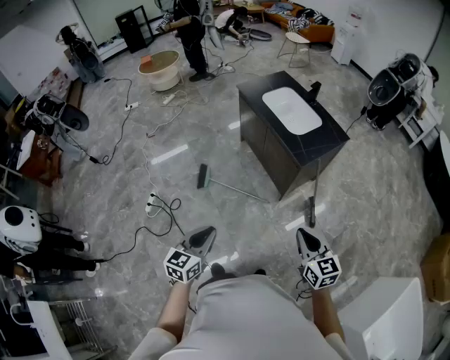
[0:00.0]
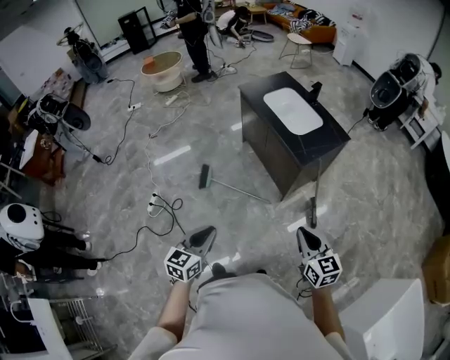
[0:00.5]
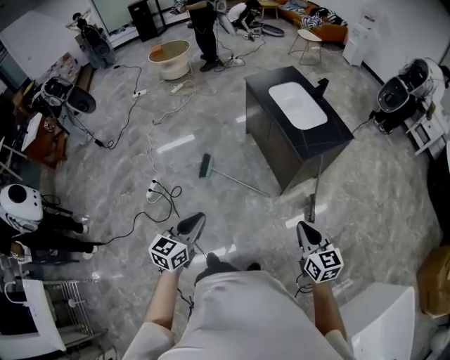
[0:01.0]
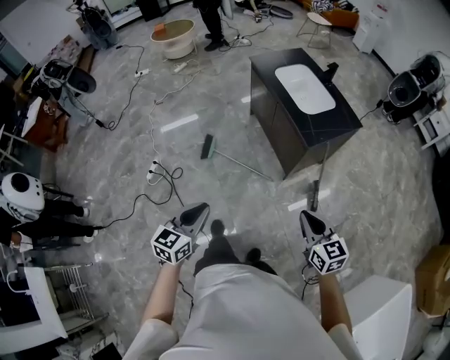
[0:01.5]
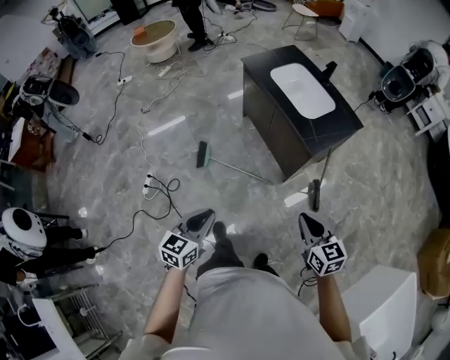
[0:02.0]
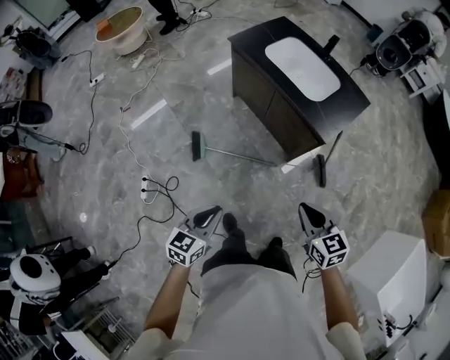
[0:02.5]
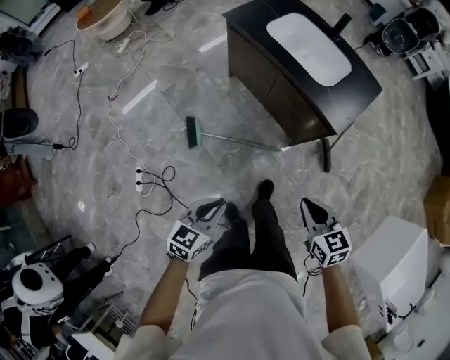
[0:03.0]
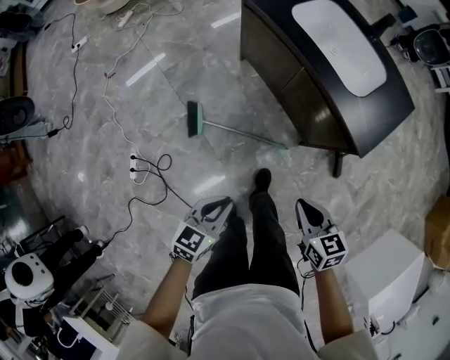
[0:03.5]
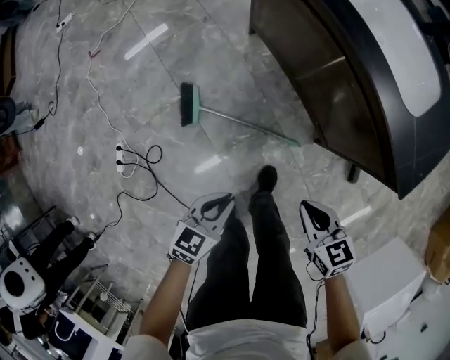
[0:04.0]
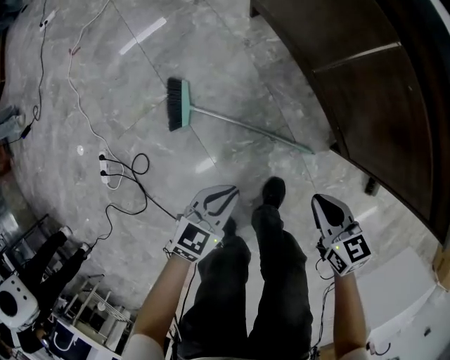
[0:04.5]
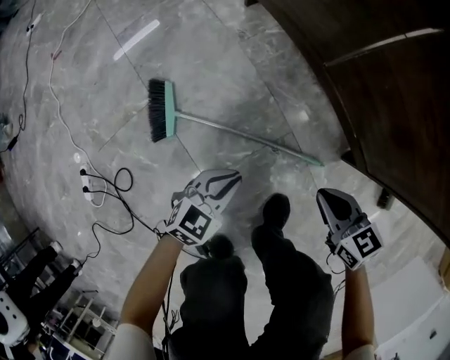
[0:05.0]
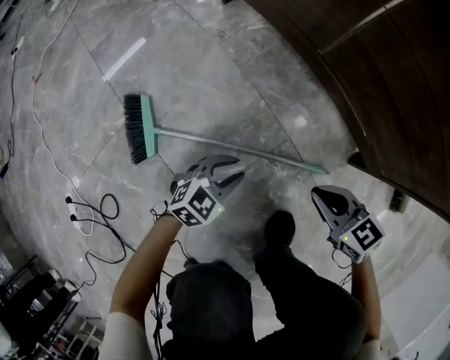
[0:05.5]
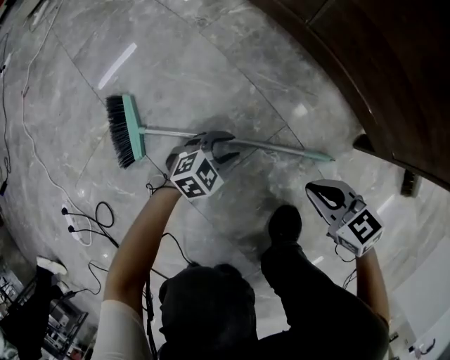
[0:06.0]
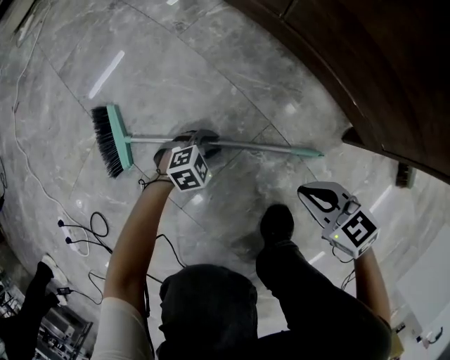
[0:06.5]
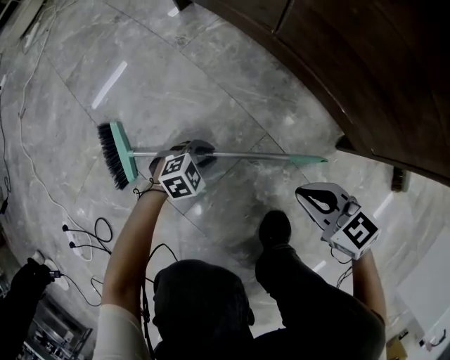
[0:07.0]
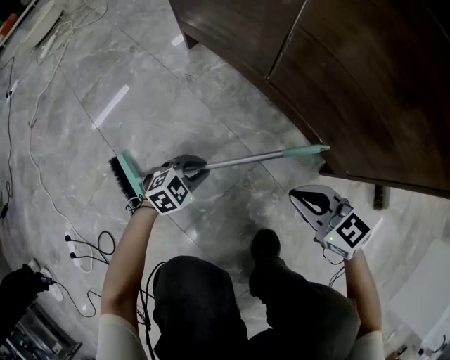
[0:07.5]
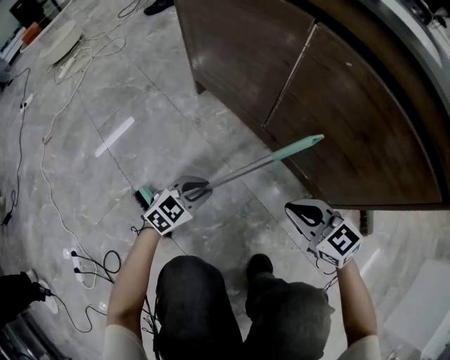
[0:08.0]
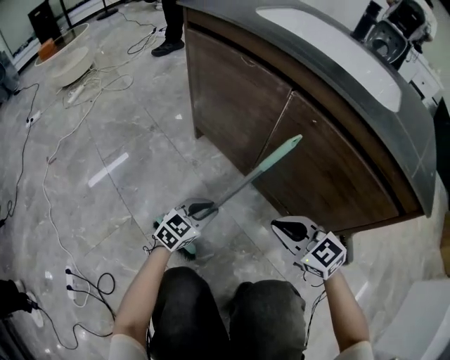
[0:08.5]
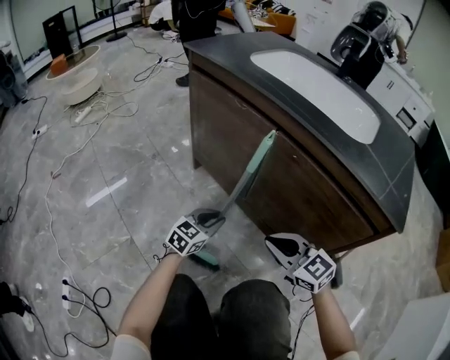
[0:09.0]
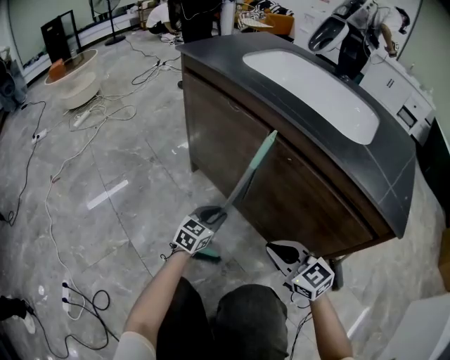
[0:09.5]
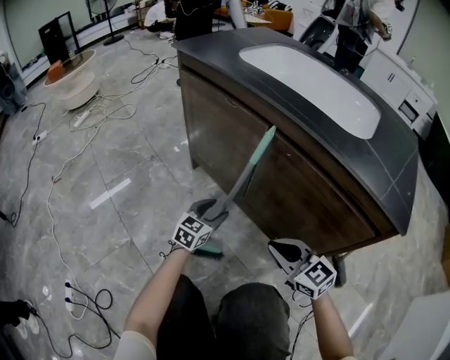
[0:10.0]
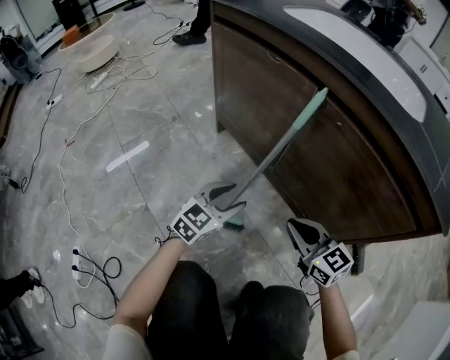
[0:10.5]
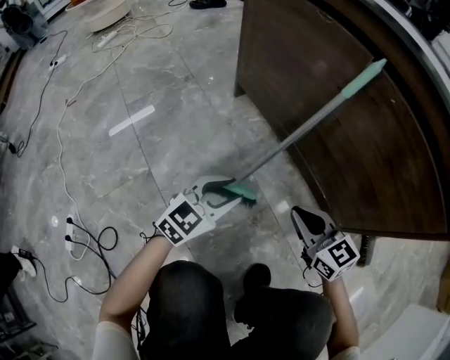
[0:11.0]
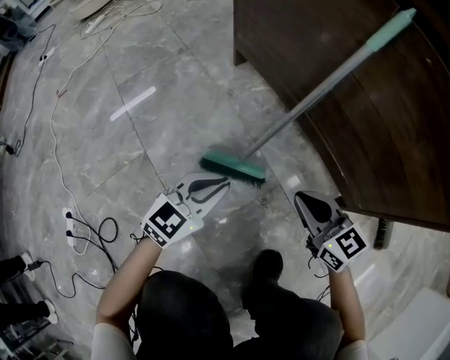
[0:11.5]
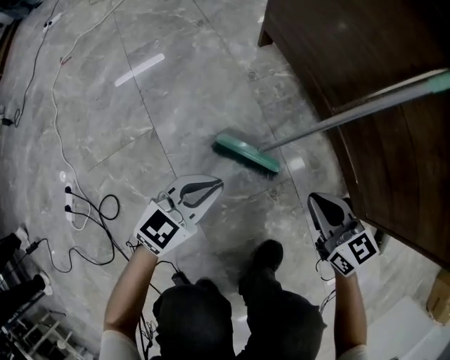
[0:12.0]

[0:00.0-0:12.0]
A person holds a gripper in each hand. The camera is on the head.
0:00.0 to 0:02.0: The left gripper goes some 10 cm forward; the right gripper moves forward and to the left, about 10 cm.
0:02.0 to 0:04.0: Both grippers move downward and forward, about 60 cm. The left gripper turns by about 20 degrees; the right gripper rotates about 20 degrees.
0:04.0 to 0:06.0: The grippers both shift downward by approximately 60 cm. The left gripper rotates around the line of its fingers by roughly 50 degrees, clockwise from behind, and opens its fingers.
0:06.0 to 0:08.0: Both grippers move upward, approximately 20 cm. The left gripper closes.
0:08.0 to 0:10.0: The right gripper is displaced upward by approximately 10 cm, while the left gripper travels upward, forward and to the right by roughly 20 cm, rotates some 20 degrees, and opens up.
0:10.0 to 0:12.0: The left gripper travels to the left, backward and downward by some 25 cm, and closes, while the right gripper moves downward and to the left, approximately 20 cm.

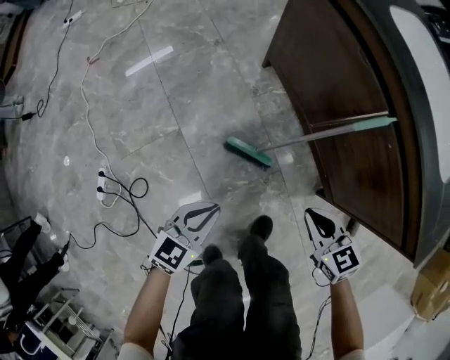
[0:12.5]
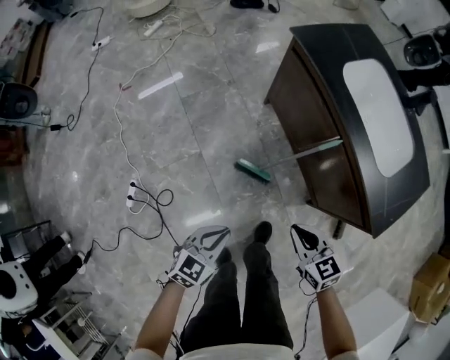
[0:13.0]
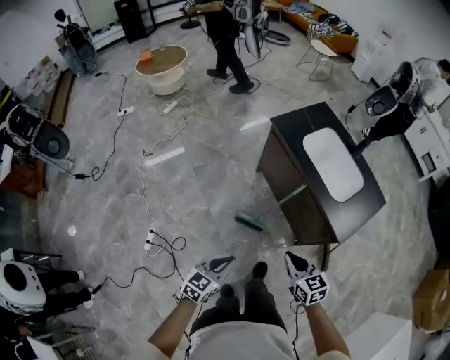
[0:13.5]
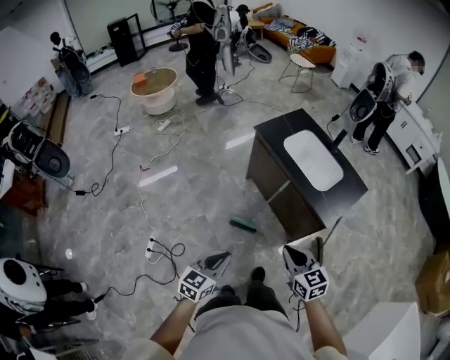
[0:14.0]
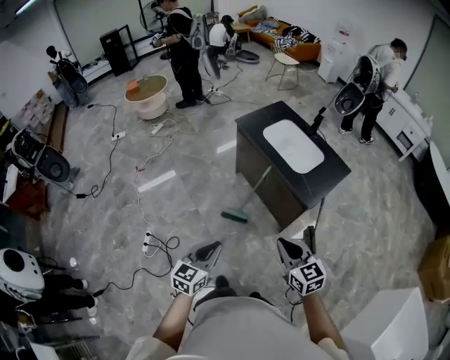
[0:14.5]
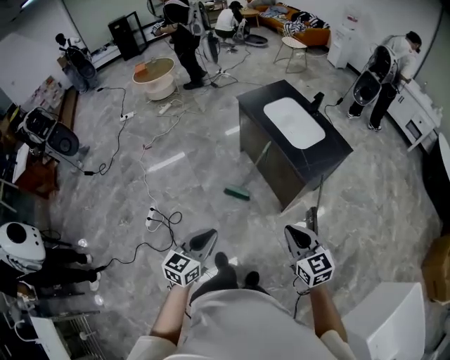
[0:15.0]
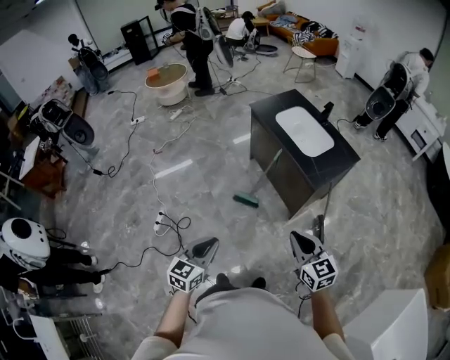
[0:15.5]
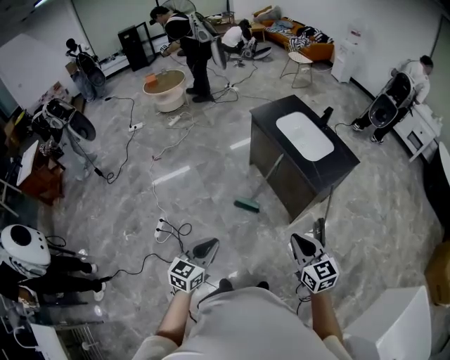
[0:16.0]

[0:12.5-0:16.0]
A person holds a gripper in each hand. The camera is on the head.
0:12.5 to 0:14.5: The two grippers go approximately 70 cm upward and backward. The right gripper swivels about 20 degrees.
0:14.5 to 0:16.0: The two grippers go roughly 10 cm backward.

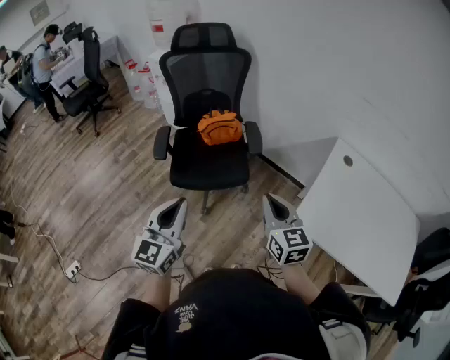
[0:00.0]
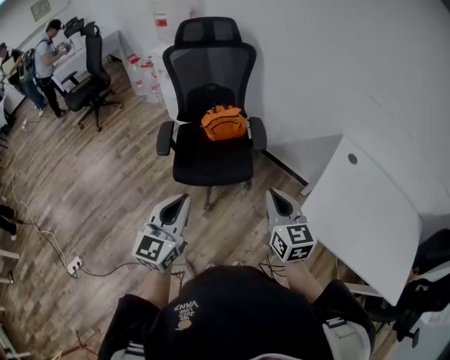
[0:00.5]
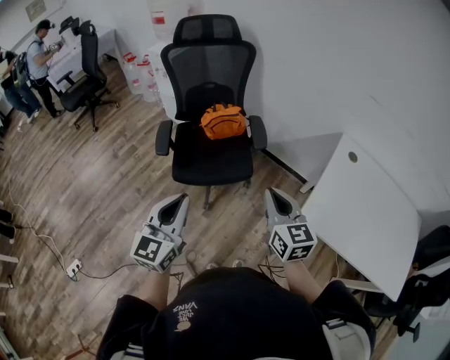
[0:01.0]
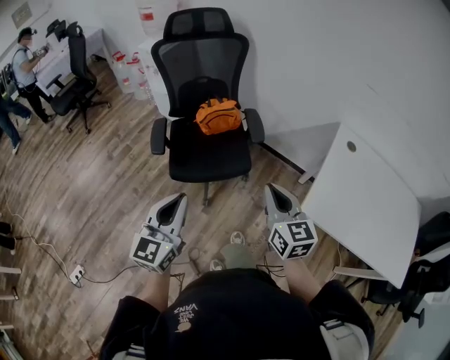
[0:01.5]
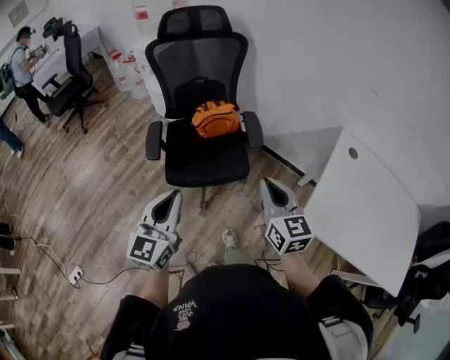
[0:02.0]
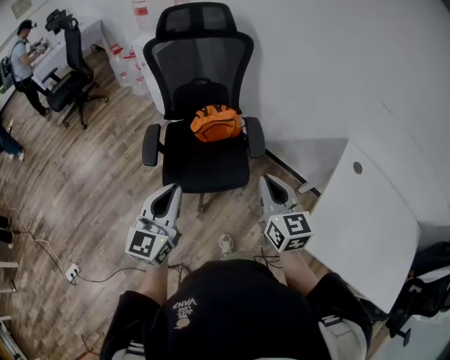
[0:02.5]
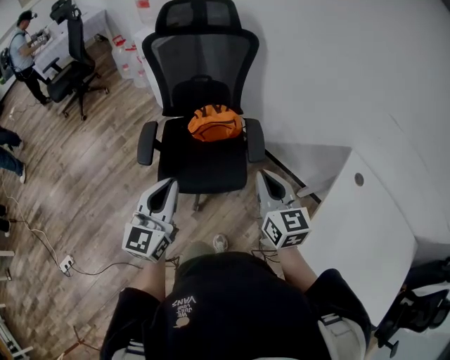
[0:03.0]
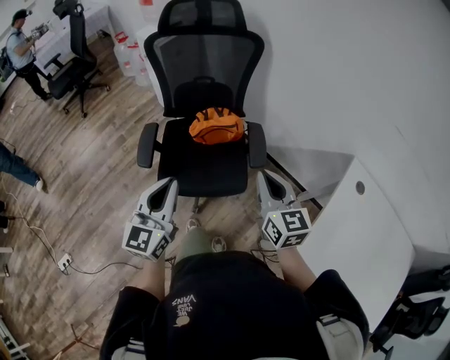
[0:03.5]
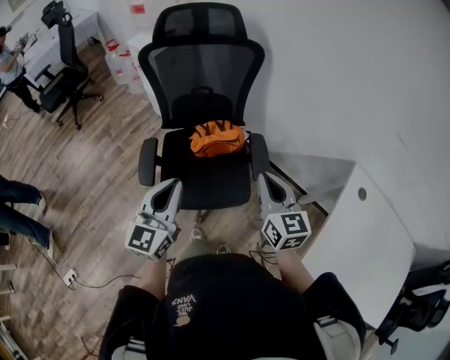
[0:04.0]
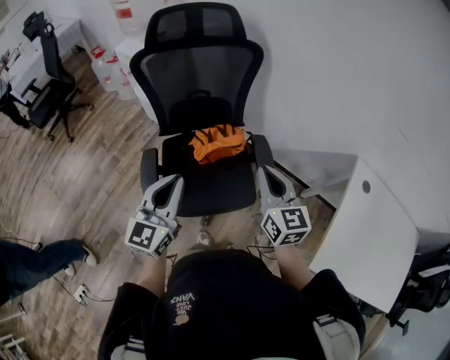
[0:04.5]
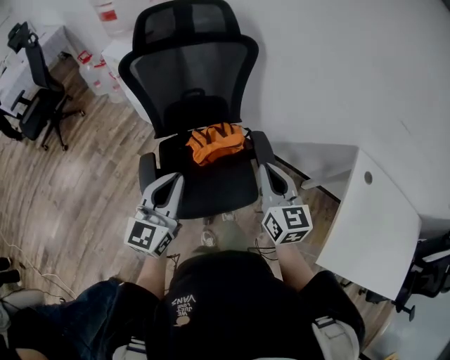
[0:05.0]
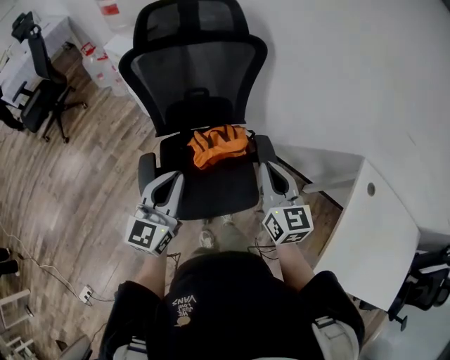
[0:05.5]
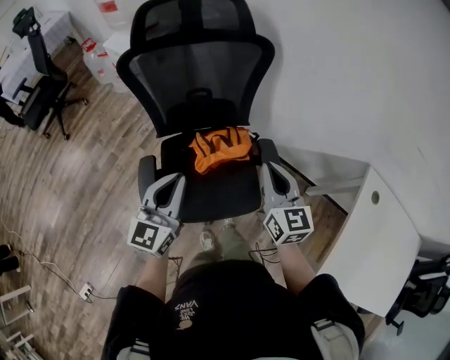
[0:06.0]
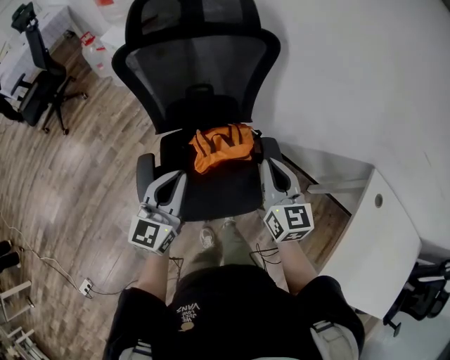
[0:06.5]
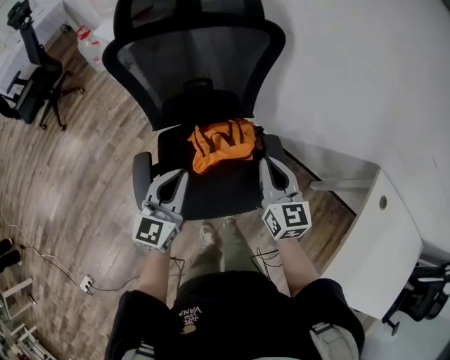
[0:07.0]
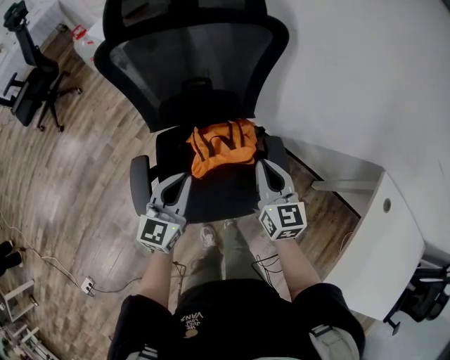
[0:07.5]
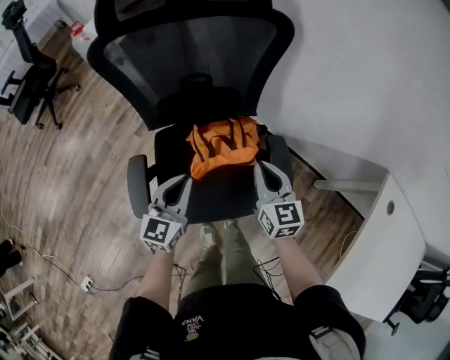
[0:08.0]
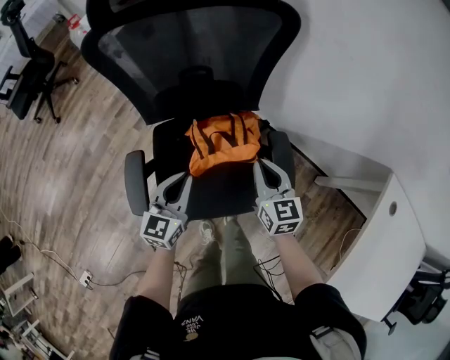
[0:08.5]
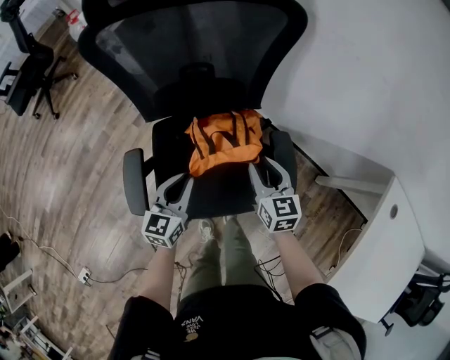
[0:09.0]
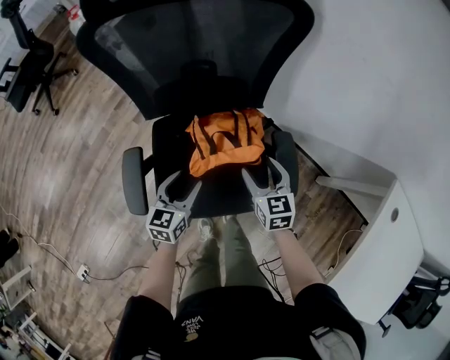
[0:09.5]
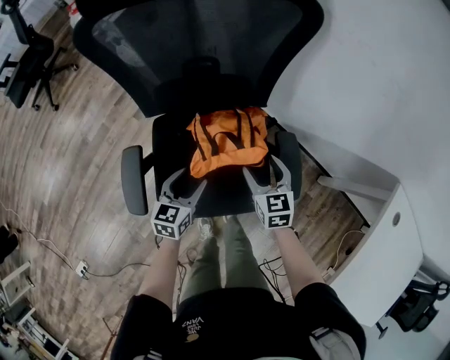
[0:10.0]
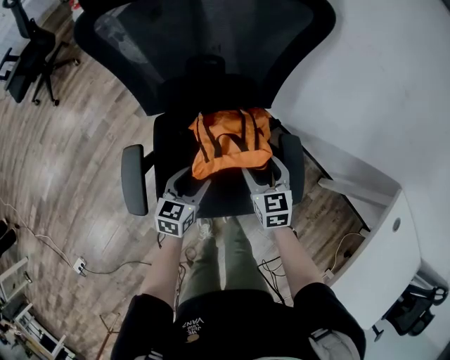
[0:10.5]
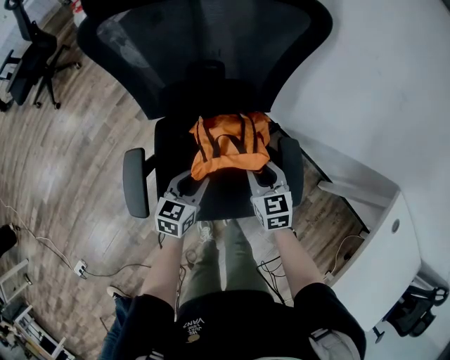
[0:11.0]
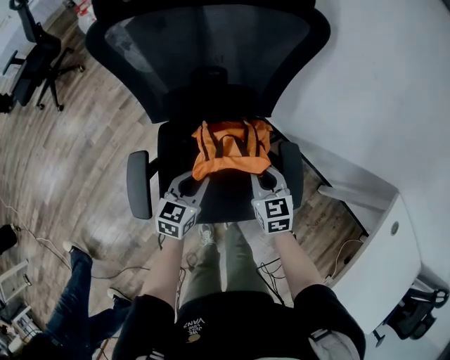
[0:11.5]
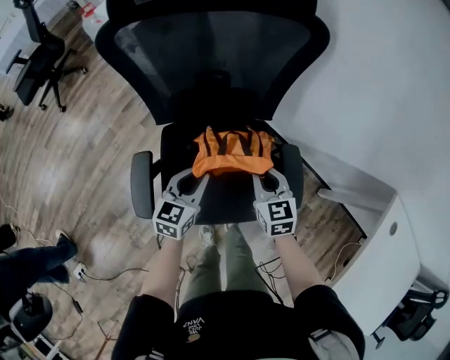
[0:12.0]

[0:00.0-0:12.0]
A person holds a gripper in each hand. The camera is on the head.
0:00.0 to 0:02.0: The two grippers go some 10 cm forward.
0:02.0 to 0:04.0: Both grippers travel together forward, some 25 cm.
0:04.0 to 0:06.0: The grippers both shift forward by roughly 15 cm.
0:06.0 to 0:08.0: The right gripper heads downward and forward, covering some 20 cm. Meanwhile the left gripper heads downward, covering about 15 cm.
0:08.0 to 0:10.0: Both grippers move downward, about 15 cm. The right gripper opens up, while the left gripper opens its fingers.
0:10.0 to 0:12.0: The left gripper is displaced upward by about 5 cm, and closes up; the right gripper changes place by approximately 5 cm, and closes up.
